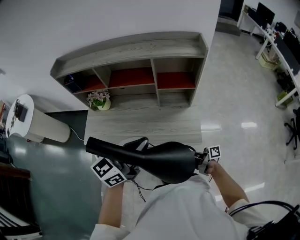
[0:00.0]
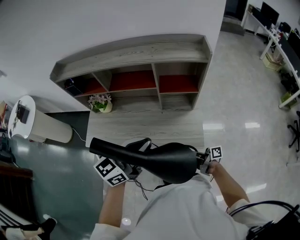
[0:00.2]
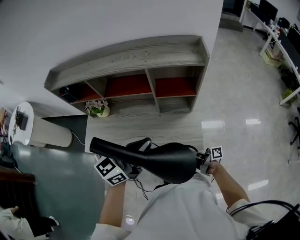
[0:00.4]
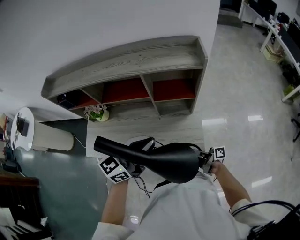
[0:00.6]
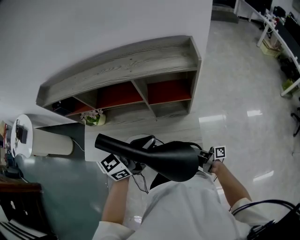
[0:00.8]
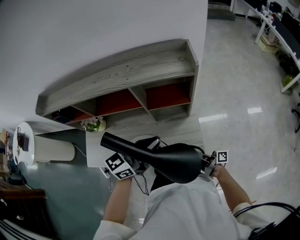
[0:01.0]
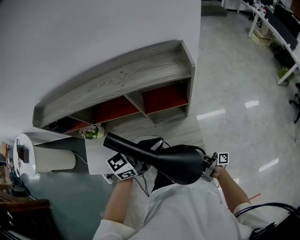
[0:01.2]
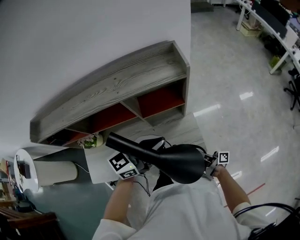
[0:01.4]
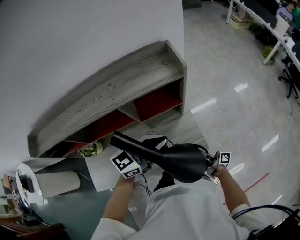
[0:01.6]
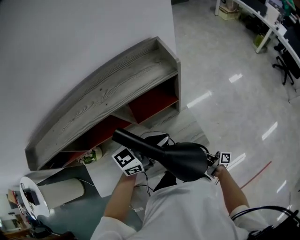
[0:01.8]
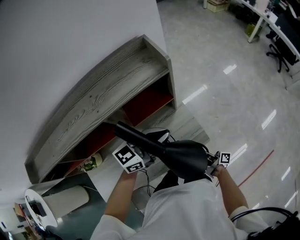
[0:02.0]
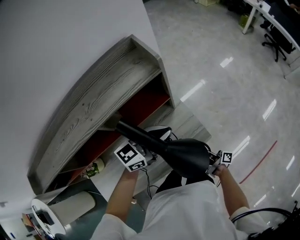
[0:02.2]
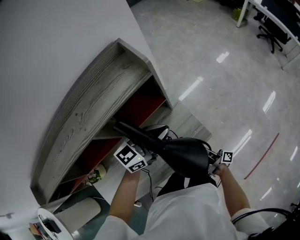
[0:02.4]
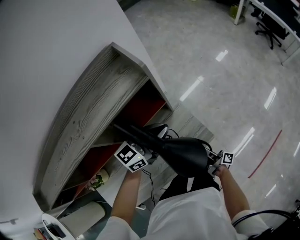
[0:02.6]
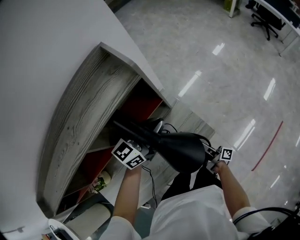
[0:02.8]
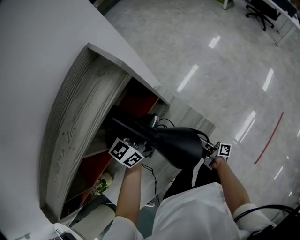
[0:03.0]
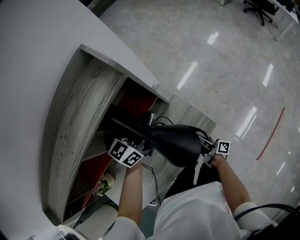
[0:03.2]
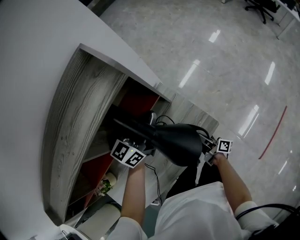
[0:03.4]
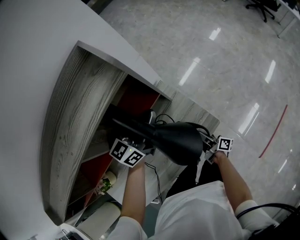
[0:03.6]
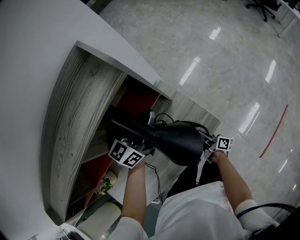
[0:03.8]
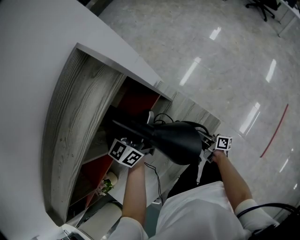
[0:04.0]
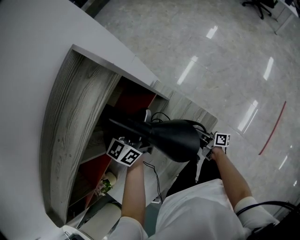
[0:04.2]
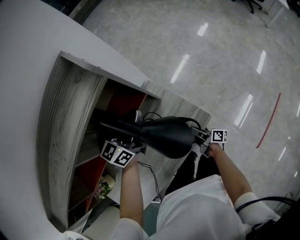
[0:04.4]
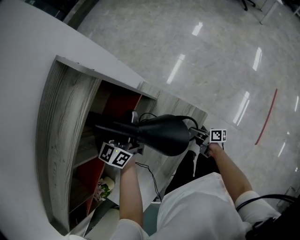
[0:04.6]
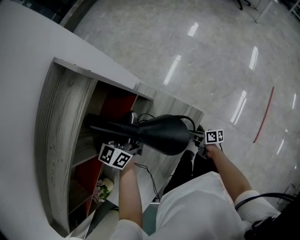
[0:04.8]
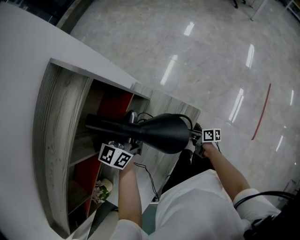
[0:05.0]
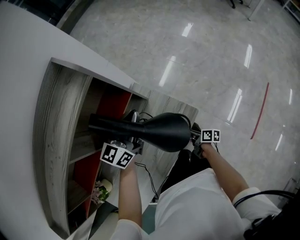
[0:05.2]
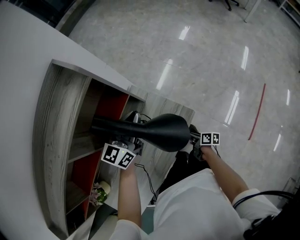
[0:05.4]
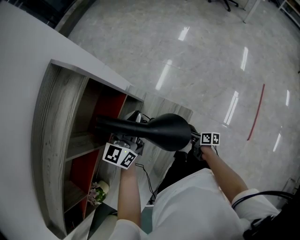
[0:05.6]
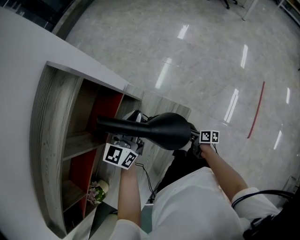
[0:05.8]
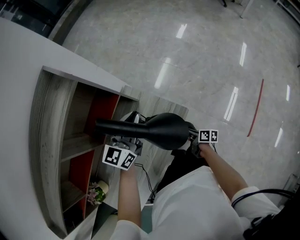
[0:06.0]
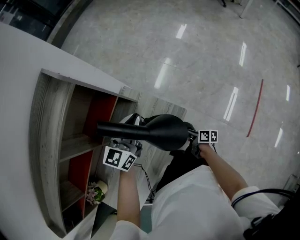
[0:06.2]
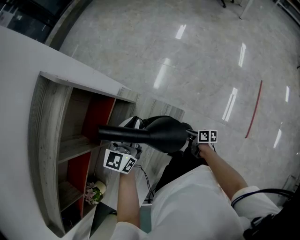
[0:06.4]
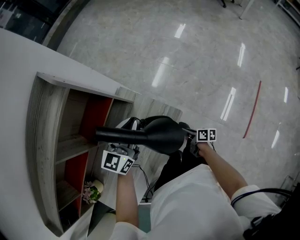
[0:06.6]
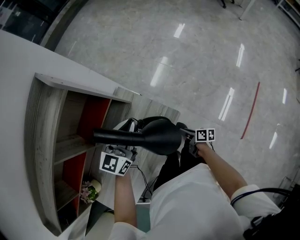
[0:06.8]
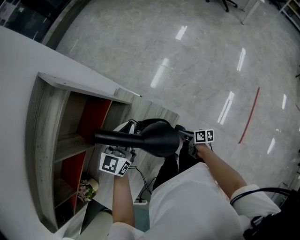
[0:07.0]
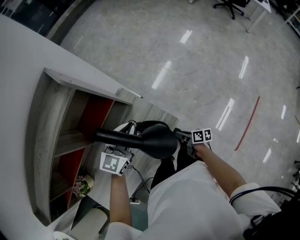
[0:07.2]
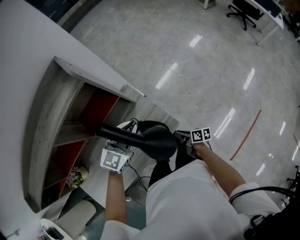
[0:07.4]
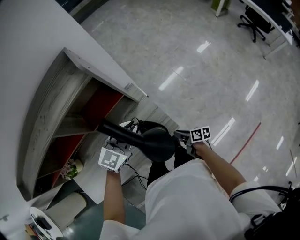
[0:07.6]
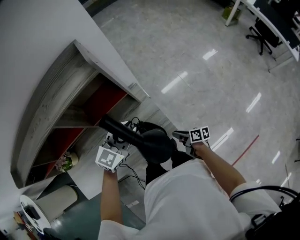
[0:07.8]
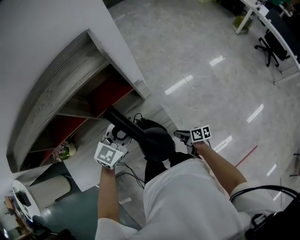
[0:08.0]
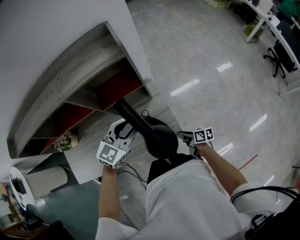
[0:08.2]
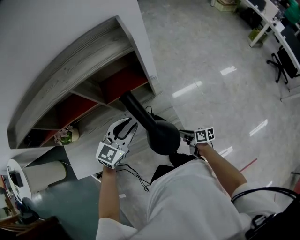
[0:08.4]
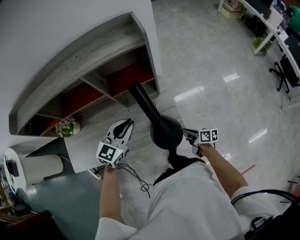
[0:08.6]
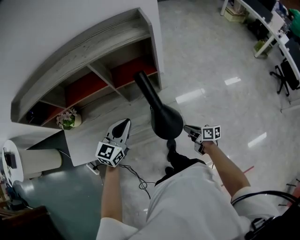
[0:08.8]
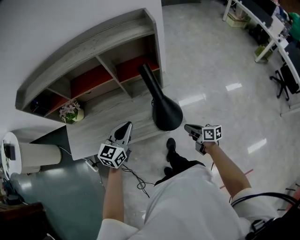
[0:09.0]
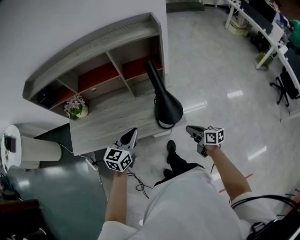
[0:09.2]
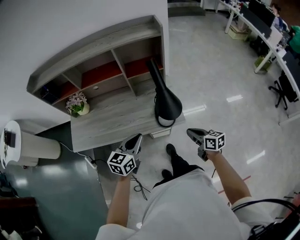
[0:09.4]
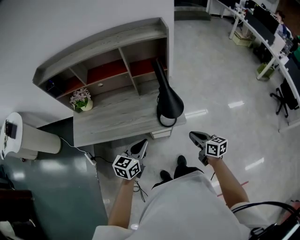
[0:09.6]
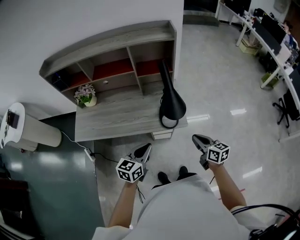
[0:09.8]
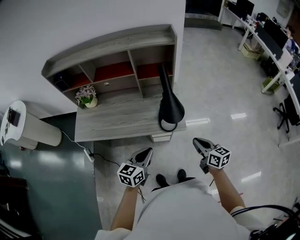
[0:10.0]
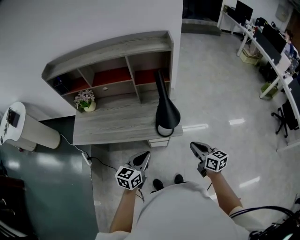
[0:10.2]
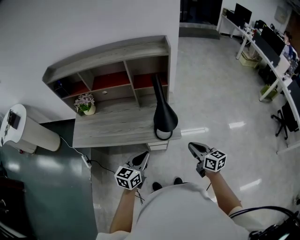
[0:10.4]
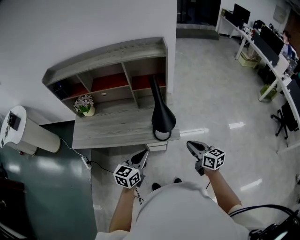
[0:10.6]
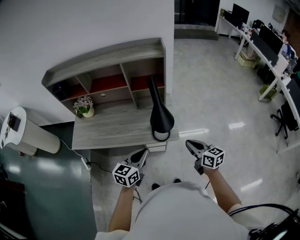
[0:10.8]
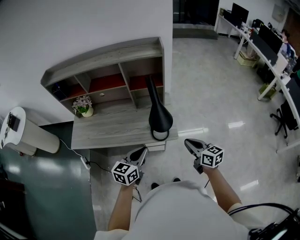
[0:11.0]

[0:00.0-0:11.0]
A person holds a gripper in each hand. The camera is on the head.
0:00.0 to 0:01.6: The left gripper ends up roughly 25 cm from where it was, and changes its angle by approximately 30 degrees.
0:01.6 to 0:03.2: The left gripper ends up approximately 20 cm from where it was.
0:04.8 to 0:06.2: The left gripper moves some 10 cm.
0:07.8 to 0:09.4: The left gripper changes place by about 30 cm, and turns by some 40 degrees.
0:09.4 to 0:11.0: The left gripper ends up some 10 cm from where it was.

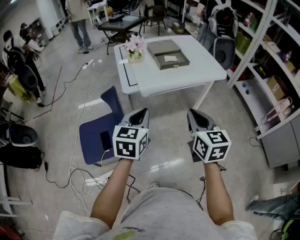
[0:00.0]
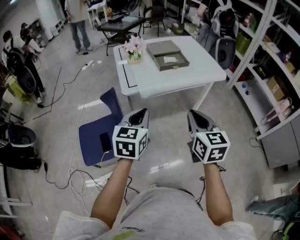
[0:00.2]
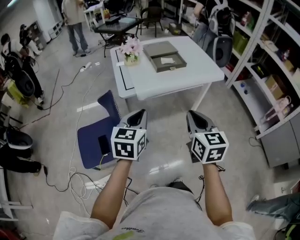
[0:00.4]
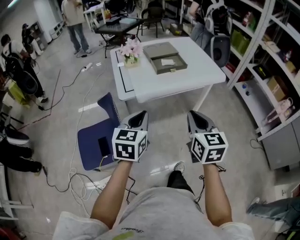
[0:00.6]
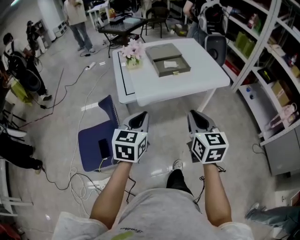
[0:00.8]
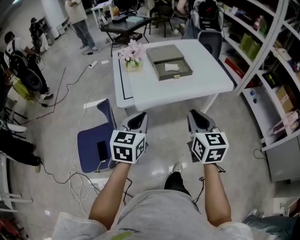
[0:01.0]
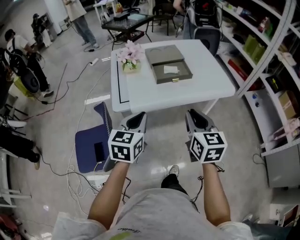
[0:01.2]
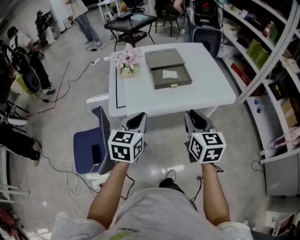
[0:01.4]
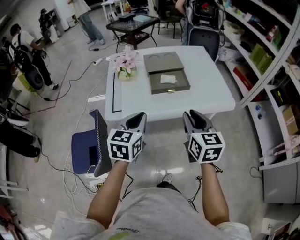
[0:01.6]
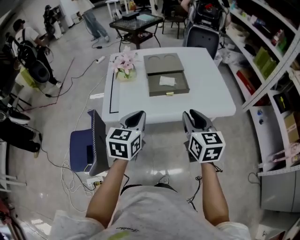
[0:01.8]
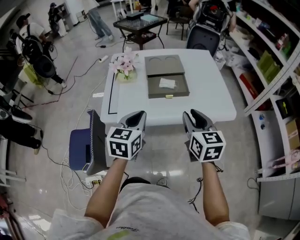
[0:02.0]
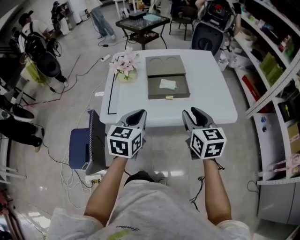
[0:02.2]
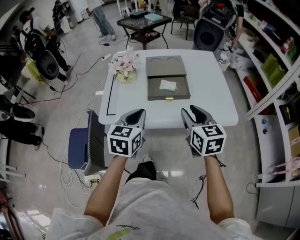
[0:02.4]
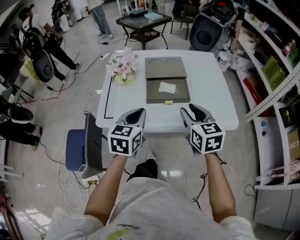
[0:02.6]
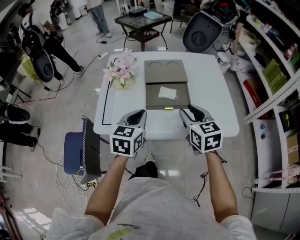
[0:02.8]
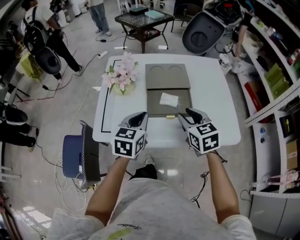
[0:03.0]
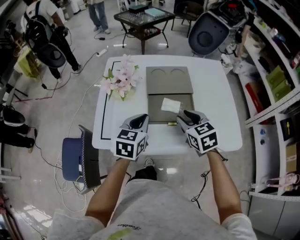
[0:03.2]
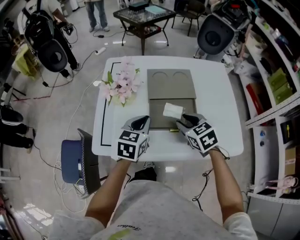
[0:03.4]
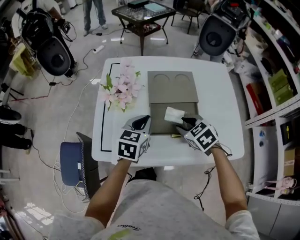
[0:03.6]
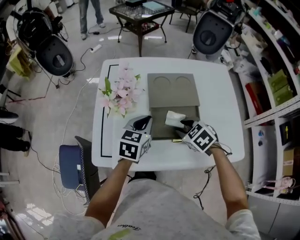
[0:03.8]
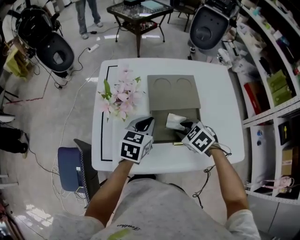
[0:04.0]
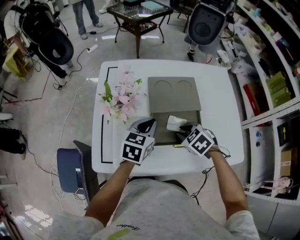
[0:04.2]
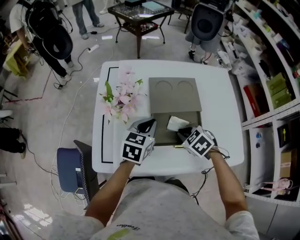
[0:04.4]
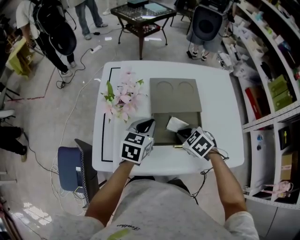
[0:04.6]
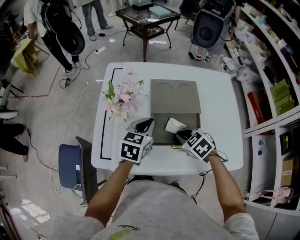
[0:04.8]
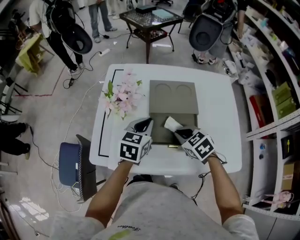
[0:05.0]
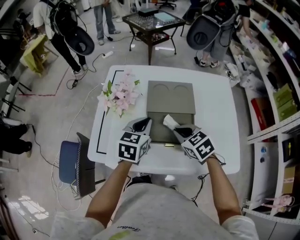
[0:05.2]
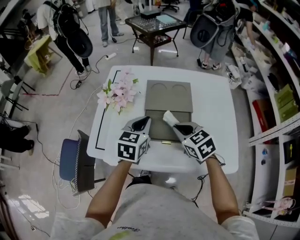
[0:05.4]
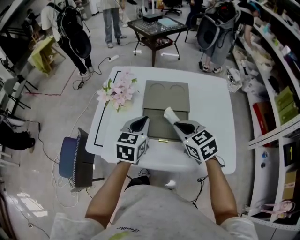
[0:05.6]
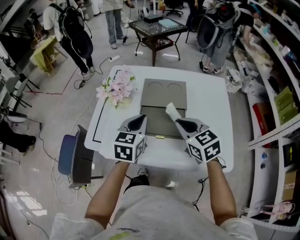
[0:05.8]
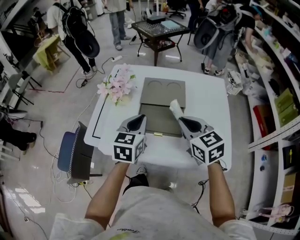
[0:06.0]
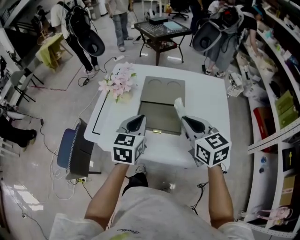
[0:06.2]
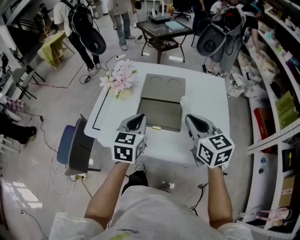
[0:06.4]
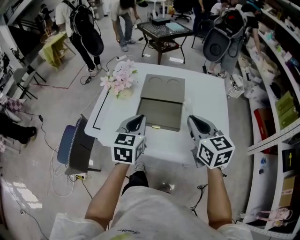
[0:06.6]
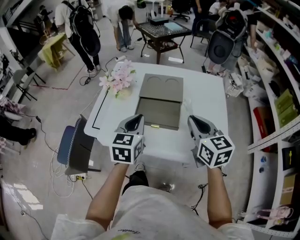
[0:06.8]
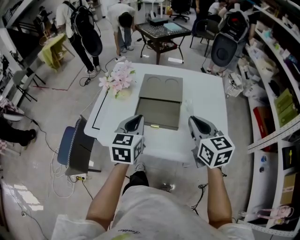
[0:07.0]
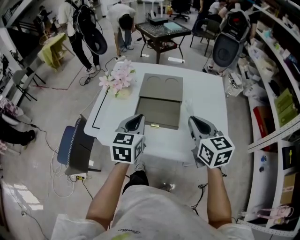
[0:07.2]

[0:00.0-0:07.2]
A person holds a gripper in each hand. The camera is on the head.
0:00.0 to 0:01.4: The two grippers go roughly 20 cm forward.
0:01.4 to 0:02.8: Both grippers move forward, some 20 cm. The right gripper swivels roughly 20 degrees.
0:02.8 to 0:04.4: The right gripper is displaced downward and forward by roughly 20 cm, tips its fingers downward by some 40 degrees, and closes up. Meanwhile the left gripper is displaced forward by about 20 cm.
0:04.4 to 0:05.8: The left gripper travels upward and backward by roughly 10 cm, and turns by about 20 degrees; the right gripper travels upward by roughly 15 cm, and tilts its fingers some 40 degrees upward.
0:05.8 to 0:07.2: The left gripper heads backward, covering approximately 5 cm. The right gripper heads to the right and backward, covering about 10 cm.

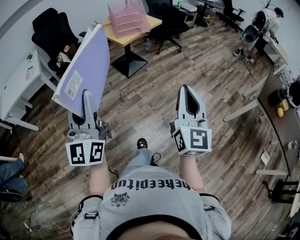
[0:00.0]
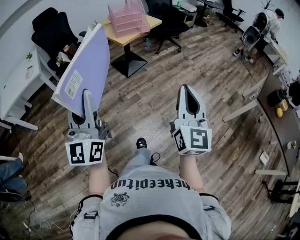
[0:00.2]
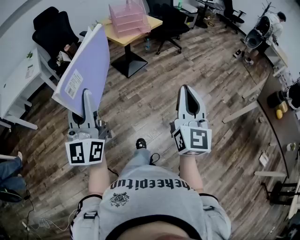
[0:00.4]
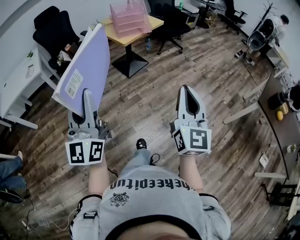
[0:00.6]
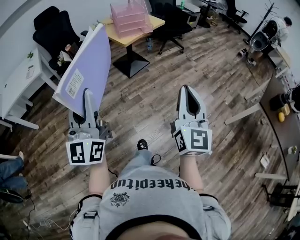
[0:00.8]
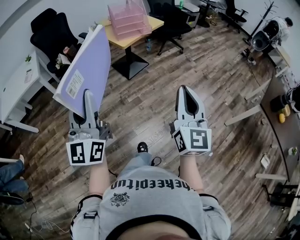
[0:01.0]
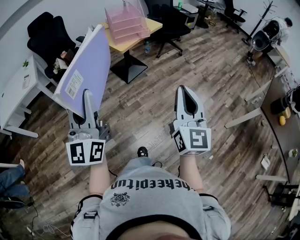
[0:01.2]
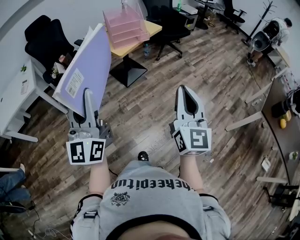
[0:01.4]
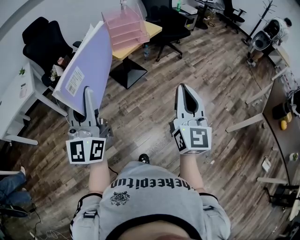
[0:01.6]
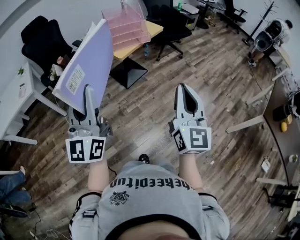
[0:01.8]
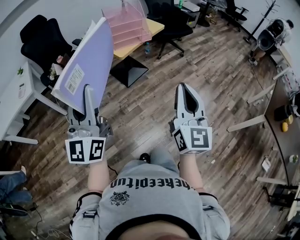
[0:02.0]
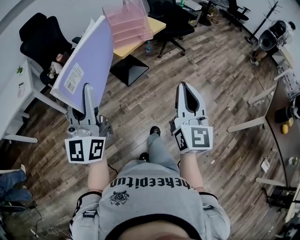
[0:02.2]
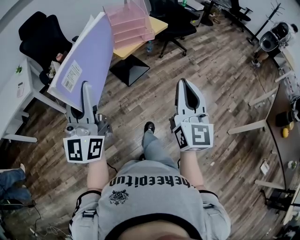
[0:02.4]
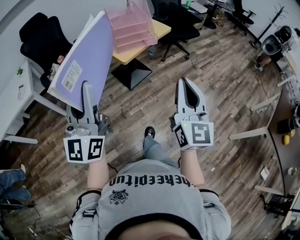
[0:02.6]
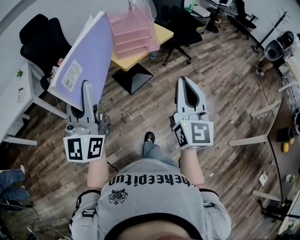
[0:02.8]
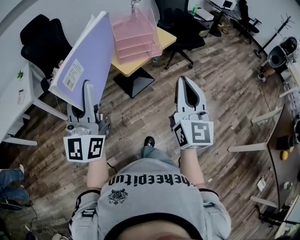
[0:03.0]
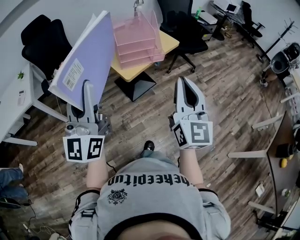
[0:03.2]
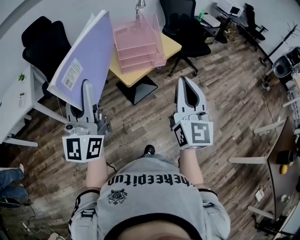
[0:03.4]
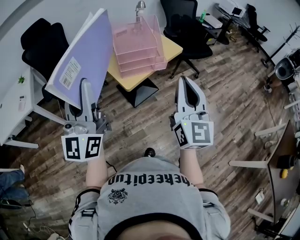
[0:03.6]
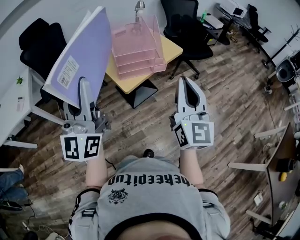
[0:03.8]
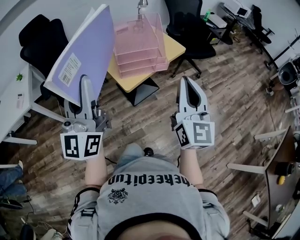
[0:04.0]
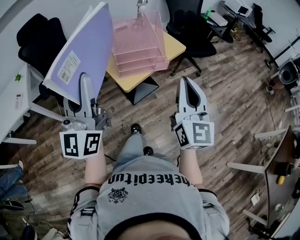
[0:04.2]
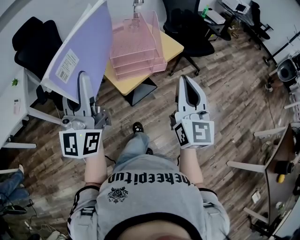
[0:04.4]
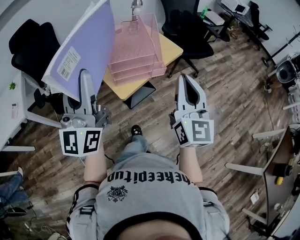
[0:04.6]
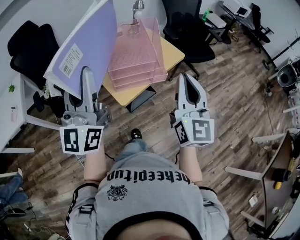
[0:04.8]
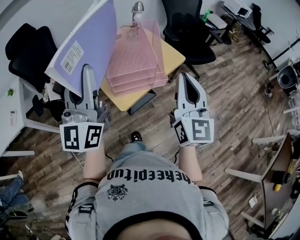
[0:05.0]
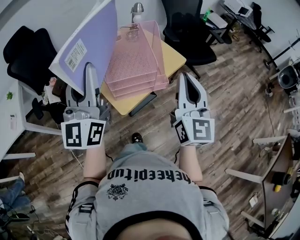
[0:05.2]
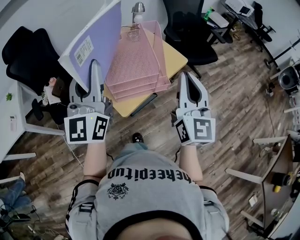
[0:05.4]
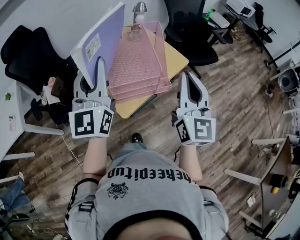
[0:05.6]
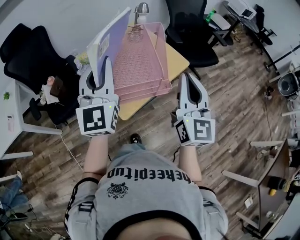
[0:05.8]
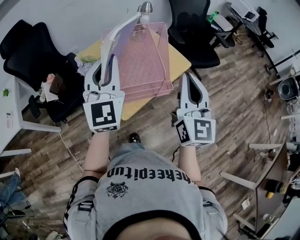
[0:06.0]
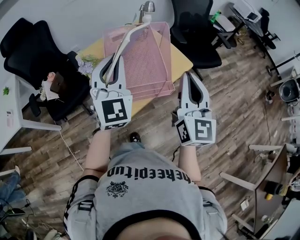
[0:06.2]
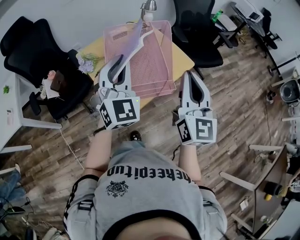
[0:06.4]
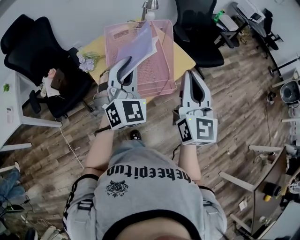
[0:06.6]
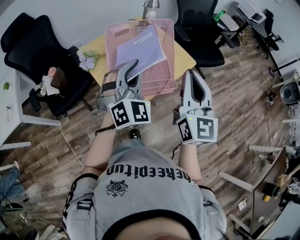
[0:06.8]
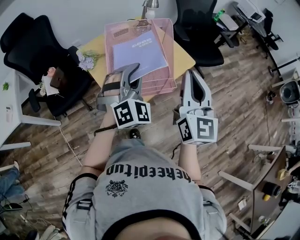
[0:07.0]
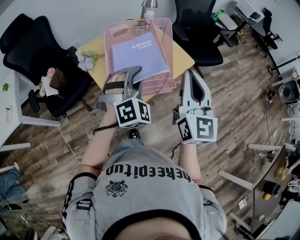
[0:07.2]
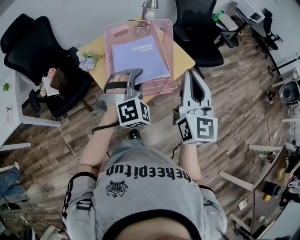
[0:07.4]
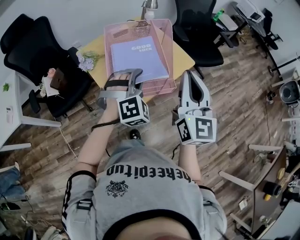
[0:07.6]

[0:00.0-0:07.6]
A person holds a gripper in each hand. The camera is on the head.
0:00.0 to 0:01.6: The two grippers go roughly 20 cm forward.
0:01.6 to 0:03.0: The two grippers go roughly 25 cm forward.
0:03.0 to 0:04.6: Both grippers travel together forward, about 25 cm.
0:04.6 to 0:06.0: The two grippers go some 20 cm forward. The left gripper swivels roughly 30 degrees.
0:06.0 to 0:07.6: The left gripper heads downward and to the right, covering about 20 cm, and angles its fingers downward, by about 40 degrees.
